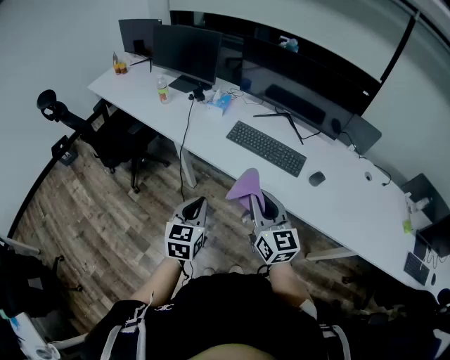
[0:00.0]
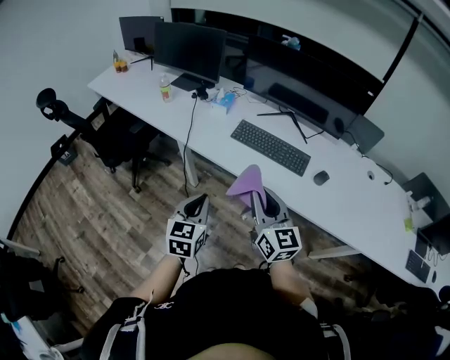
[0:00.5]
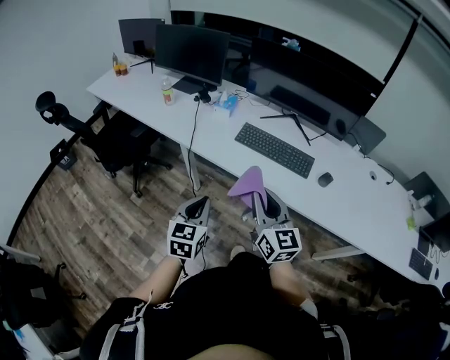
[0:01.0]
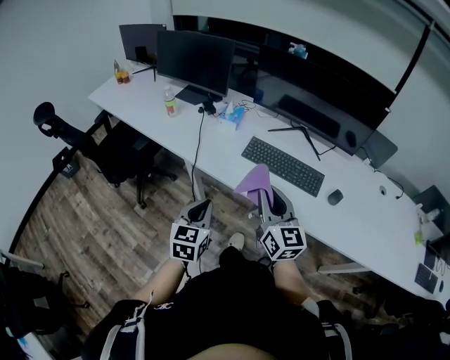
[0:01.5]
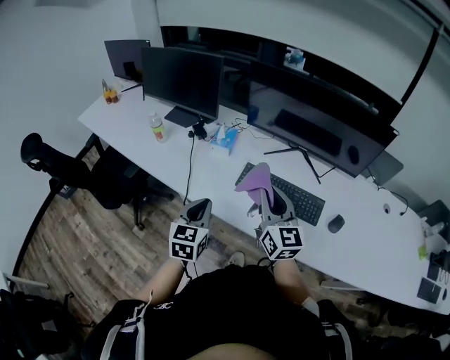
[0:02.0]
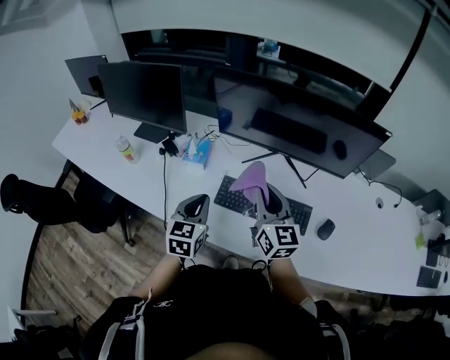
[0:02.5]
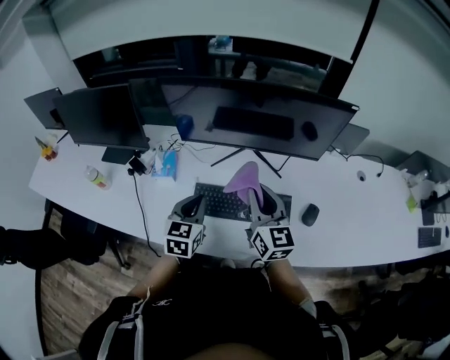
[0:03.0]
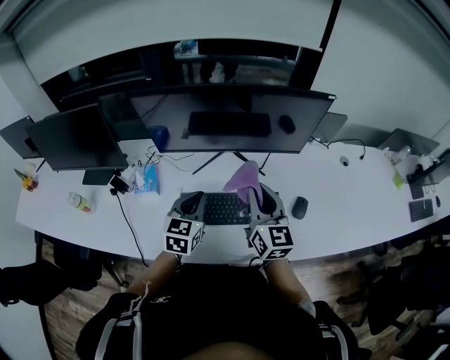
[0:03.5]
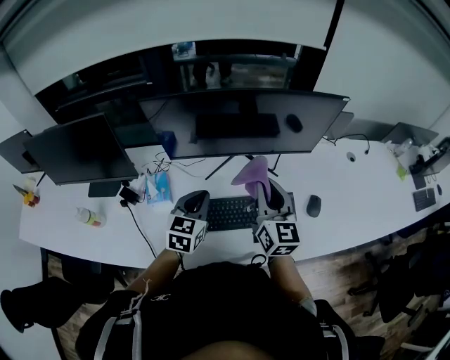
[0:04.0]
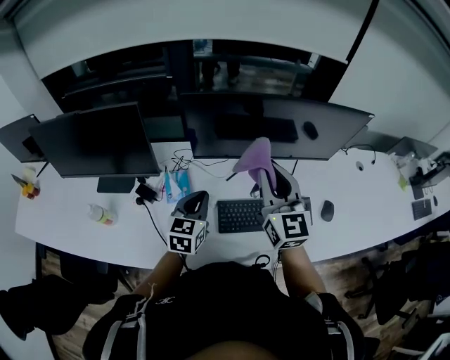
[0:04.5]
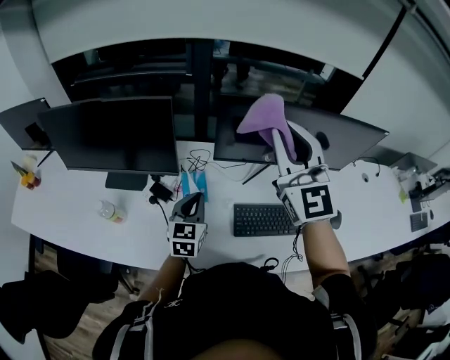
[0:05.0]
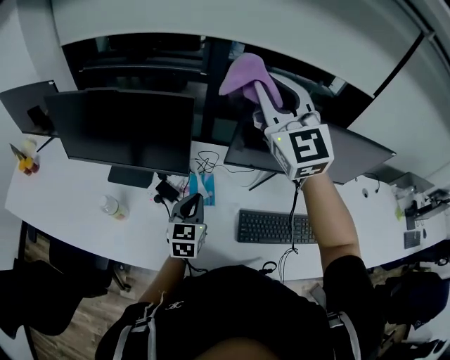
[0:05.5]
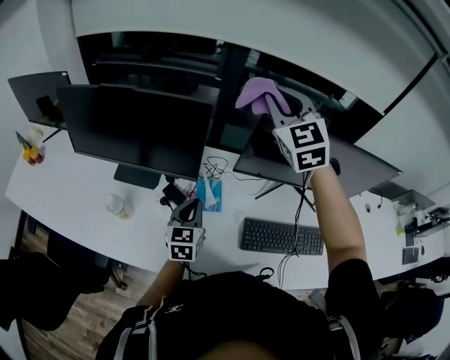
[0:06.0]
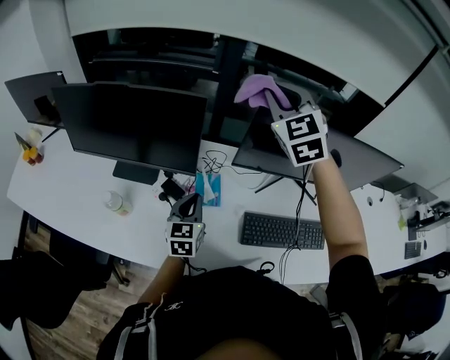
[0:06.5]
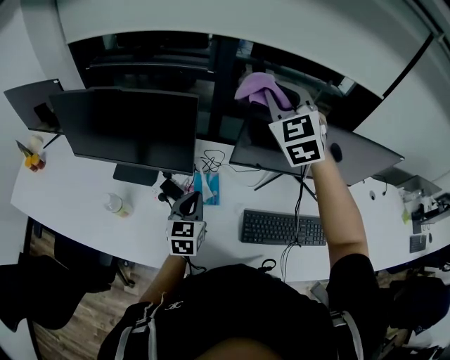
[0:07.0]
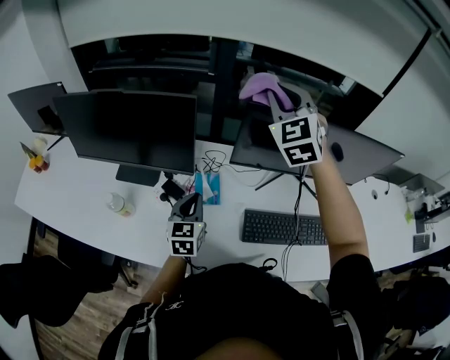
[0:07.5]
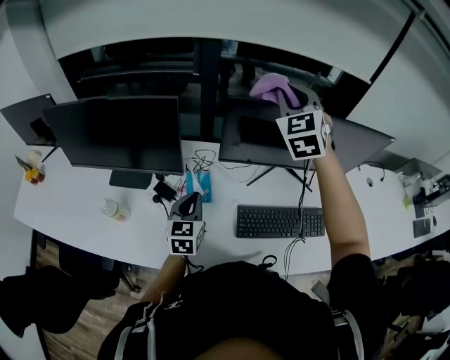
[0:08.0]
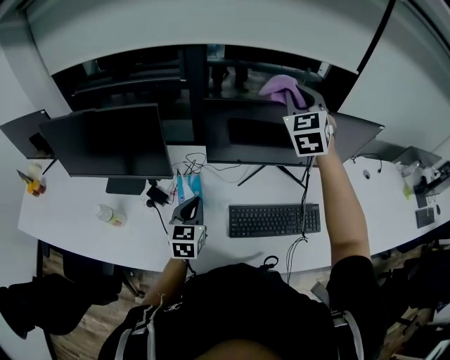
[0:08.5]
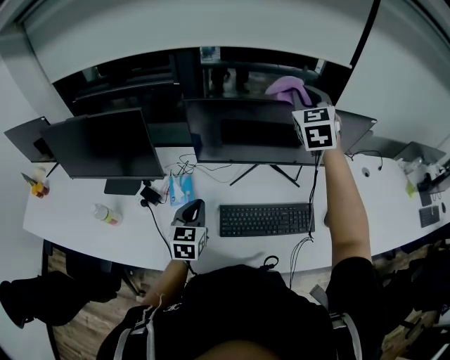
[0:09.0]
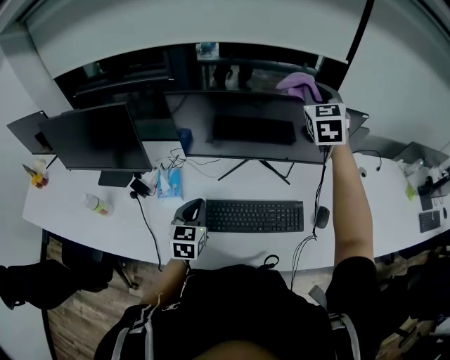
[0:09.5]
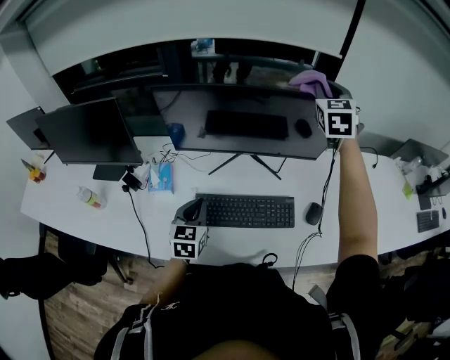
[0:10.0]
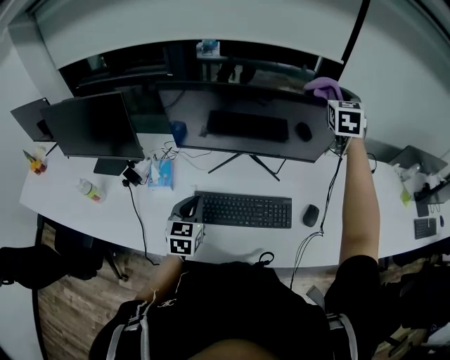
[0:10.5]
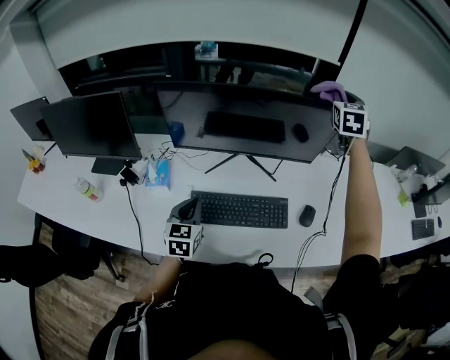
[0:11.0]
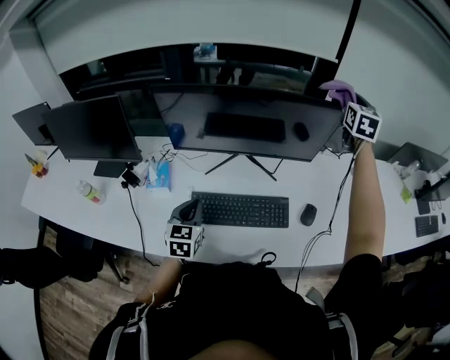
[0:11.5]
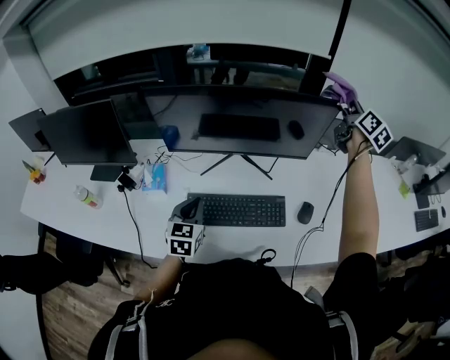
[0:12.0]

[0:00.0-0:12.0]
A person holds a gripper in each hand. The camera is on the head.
0:00.0 to 0:02.0: Both grippers move forward, about 30 cm.
0:02.0 to 0:04.0: The right gripper shifts by about 20 cm, and swivels approximately 40 degrees. The left gripper shifts by approximately 30 cm, and rotates roughly 40 degrees.
0:04.0 to 0:06.0: The left gripper heads to the left, covering approximately 30 cm, and swivels approximately 20 degrees, while the right gripper moves to the left, forward and upward, roughly 50 cm, and rolls counterclockwise, seen from behind, by about 50 degrees.
0:06.0 to 0:08.0: The left gripper goes approximately 5 cm to the right. The right gripper heads to the right, covering about 15 cm.
0:08.0 to 0:10.0: The right gripper shifts approximately 40 cm to the right. Meanwhile the left gripper goes about 25 cm to the right.
0:10.0 to 0:12.0: The right gripper goes some 20 cm to the right, and rotates around the line of its fingers by approximately 60 degrees, clockwise from behind.

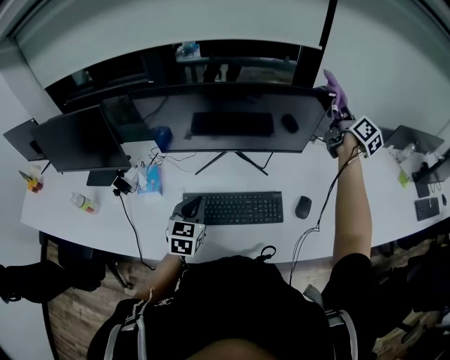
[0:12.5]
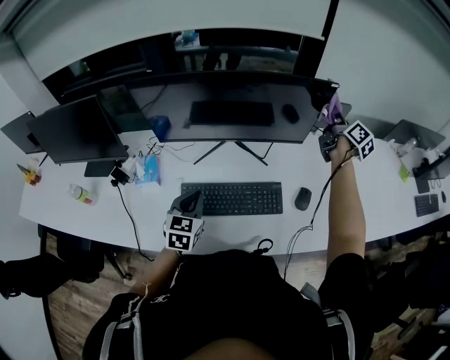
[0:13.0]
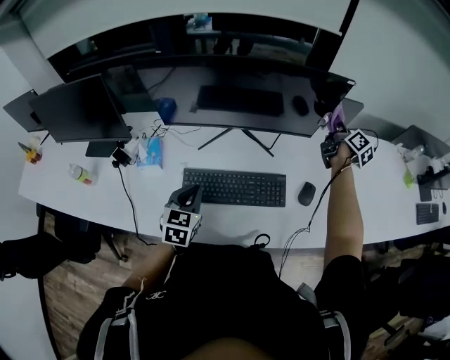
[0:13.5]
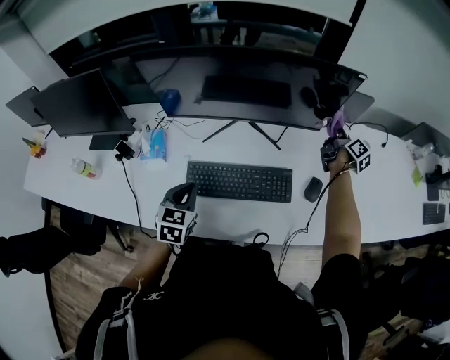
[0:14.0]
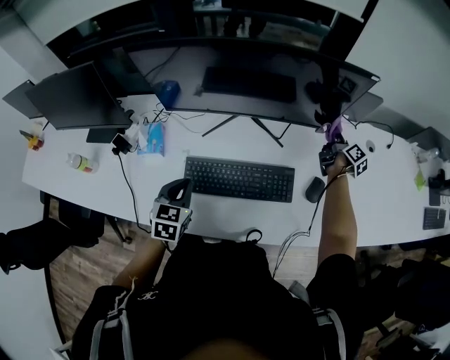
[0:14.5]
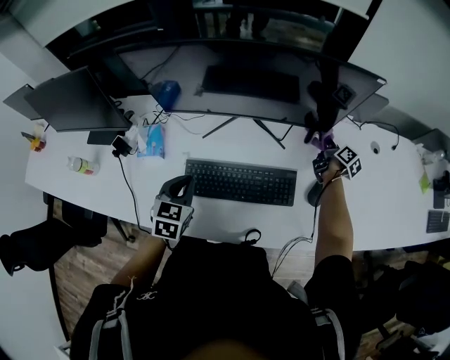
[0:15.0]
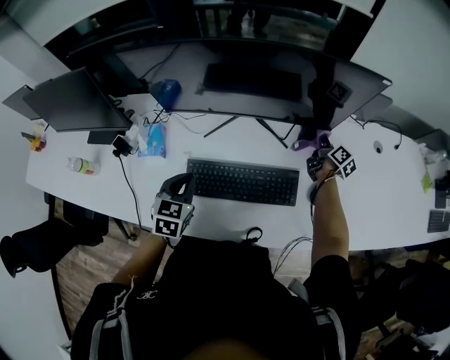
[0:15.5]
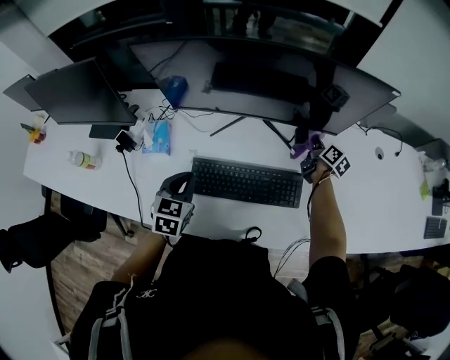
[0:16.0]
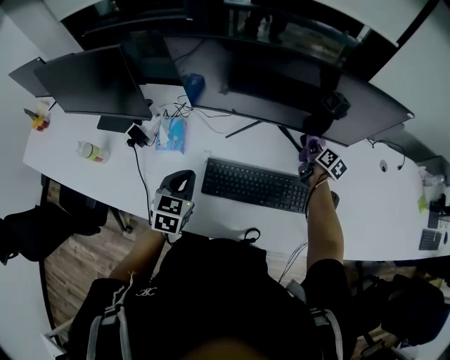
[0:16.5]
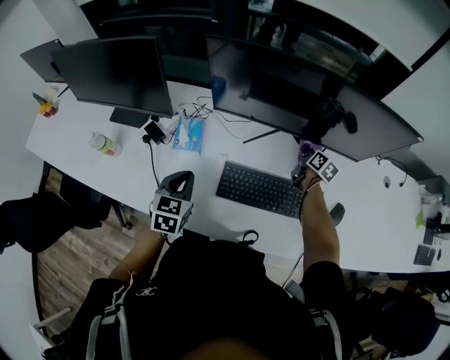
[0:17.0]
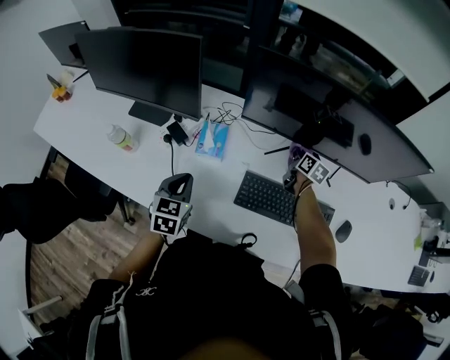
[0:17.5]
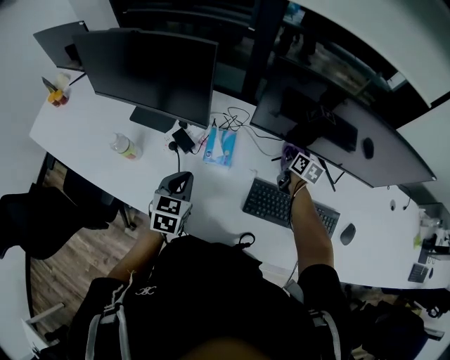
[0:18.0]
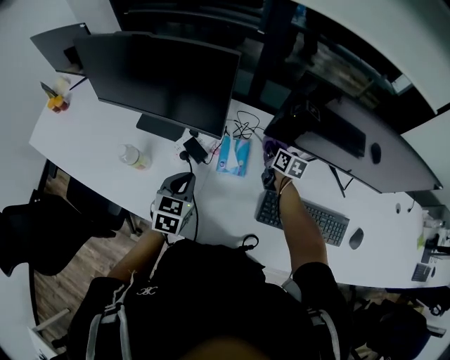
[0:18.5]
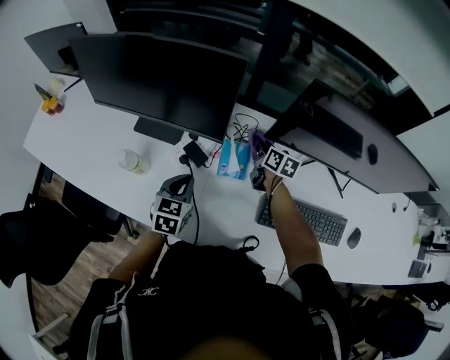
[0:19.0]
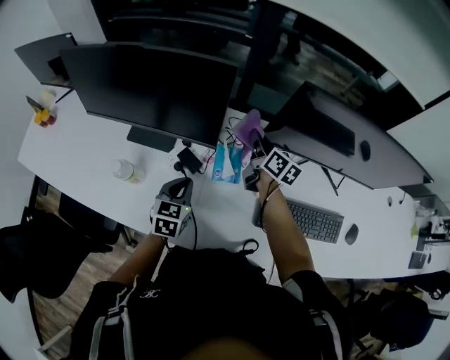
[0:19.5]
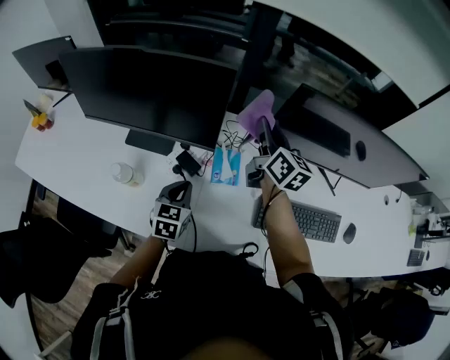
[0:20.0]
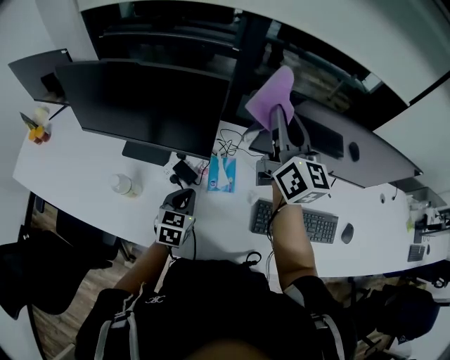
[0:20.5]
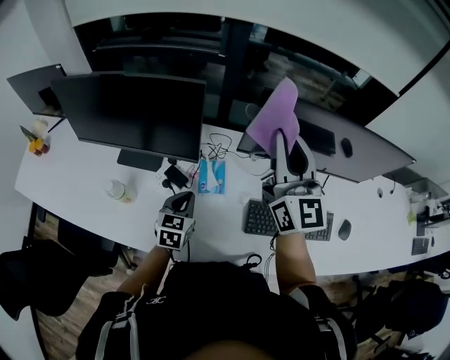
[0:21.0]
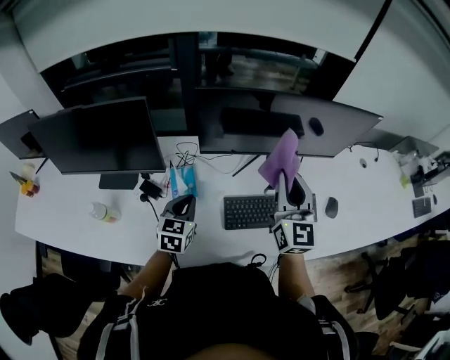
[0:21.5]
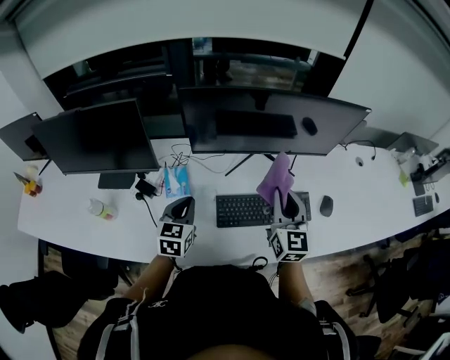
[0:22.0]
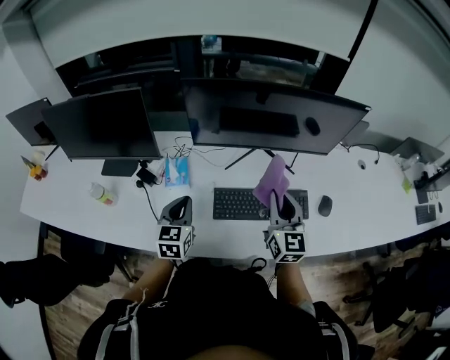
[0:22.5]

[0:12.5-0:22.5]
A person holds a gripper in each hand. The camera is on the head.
0:12.5 to 0:14.5: The right gripper is displaced downward by some 30 cm, and changes its angle by some 30 degrees. The left gripper is displaced downward by approximately 5 cm.
0:14.5 to 0:16.5: The right gripper shifts about 20 cm to the left, and changes its angle by about 30 degrees. Meanwhile the left gripper heads to the left, covering roughly 10 cm.
0:16.5 to 0:18.5: The left gripper heads to the left, covering roughly 25 cm. Meanwhile the right gripper travels to the left by some 50 cm, and turns by some 30 degrees.
0:18.5 to 0:20.5: The right gripper shifts approximately 35 cm upward, and points its fingers roughly 40 degrees further upward.
0:20.5 to 0:22.5: The right gripper heads to the right, backward and downward, covering about 40 cm, and turns by approximately 30 degrees, while the left gripper goes about 25 cm to the right and upward.

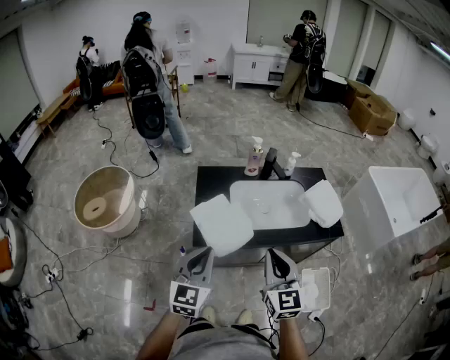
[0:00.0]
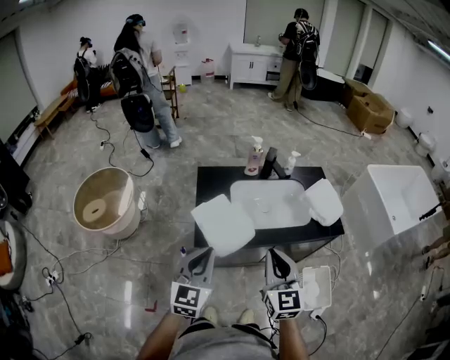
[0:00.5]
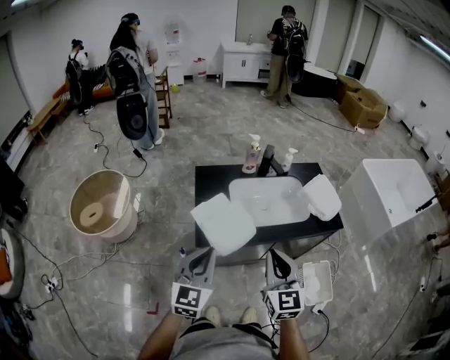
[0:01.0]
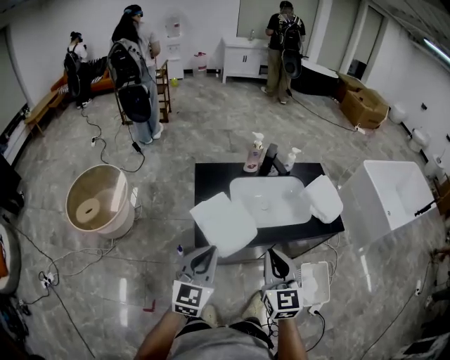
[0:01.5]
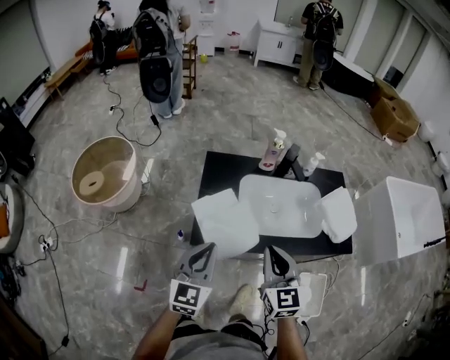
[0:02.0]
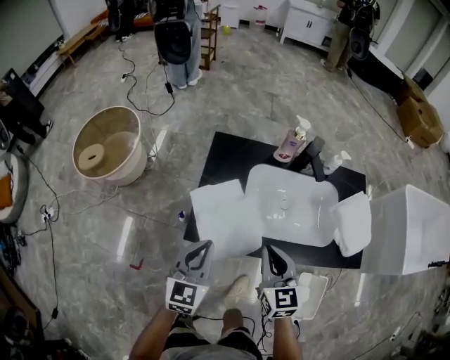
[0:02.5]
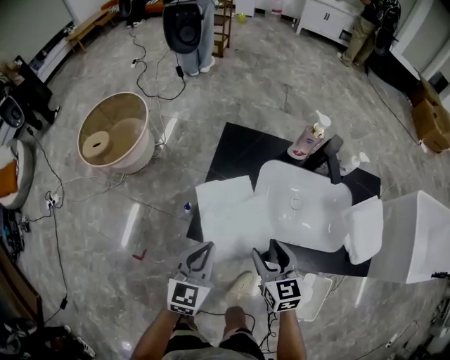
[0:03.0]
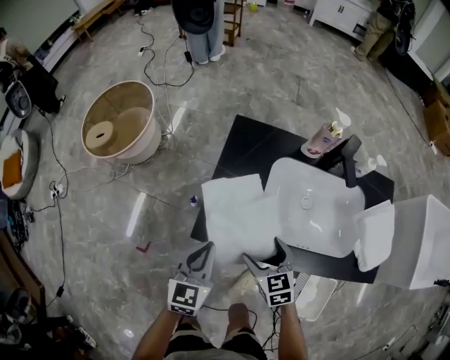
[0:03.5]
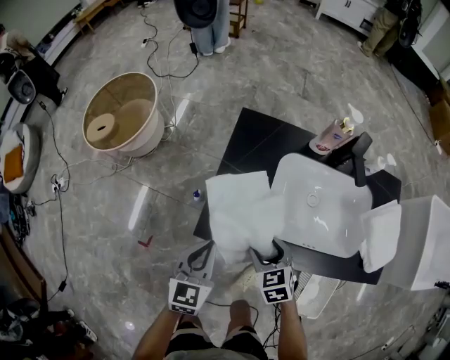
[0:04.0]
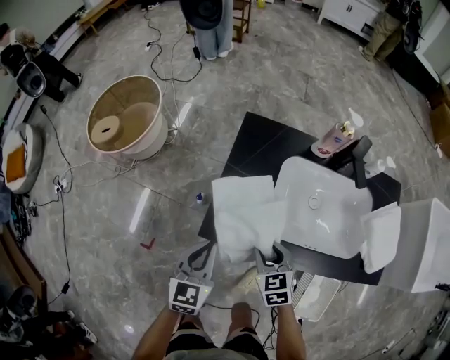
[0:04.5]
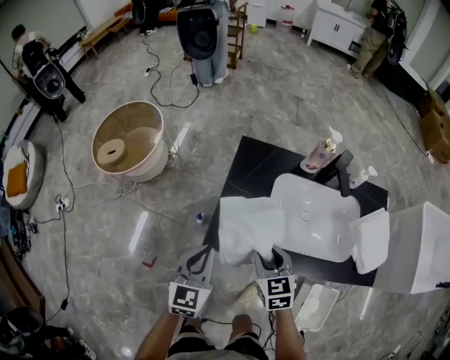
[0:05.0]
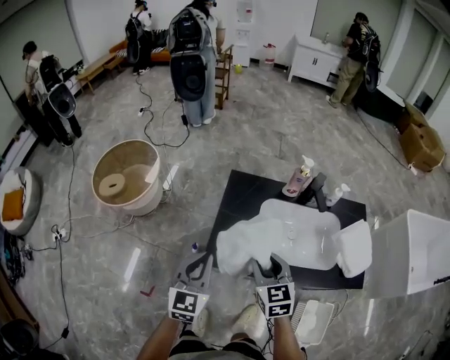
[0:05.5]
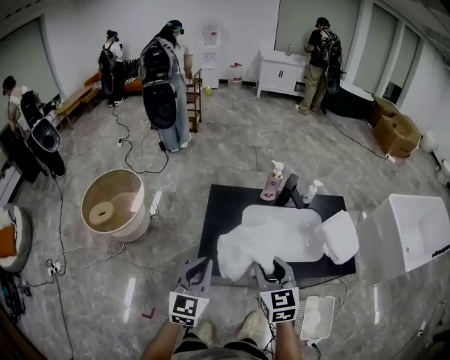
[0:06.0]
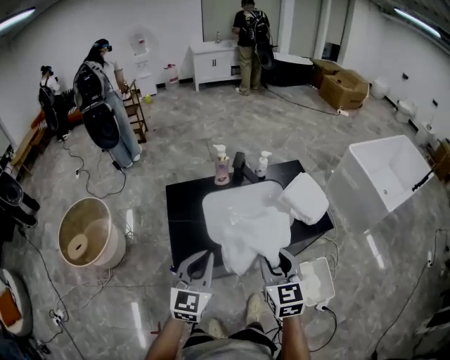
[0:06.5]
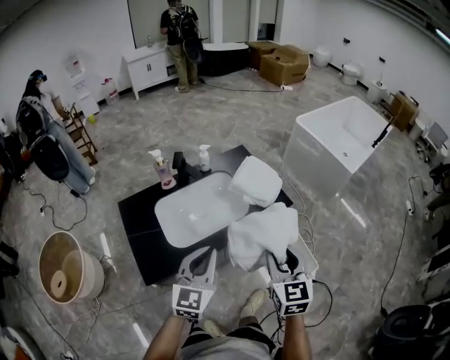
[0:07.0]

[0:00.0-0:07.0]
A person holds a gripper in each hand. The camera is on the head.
0:00.0 to 0:02.0: The left gripper moves forward, some 10 cm. Meanwhile the right gripper goes some 10 cm forward and downward.
0:02.0 to 0:03.5: Both grippers travel together downward, approximately 20 cm. The right gripper swivels about 40 degrees, and opens its fingers.
0:03.5 to 0:05.0: The grippers both shift upward by roughly 5 cm. The right gripper closes.
0:05.0 to 0:07.0: The right gripper changes place by some 40 cm, and swivels about 60 degrees; the left gripper shifts by about 35 cm, and turns by some 50 degrees.
